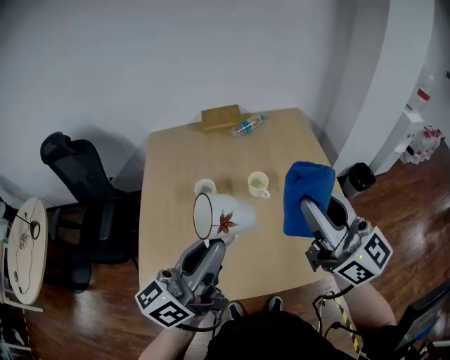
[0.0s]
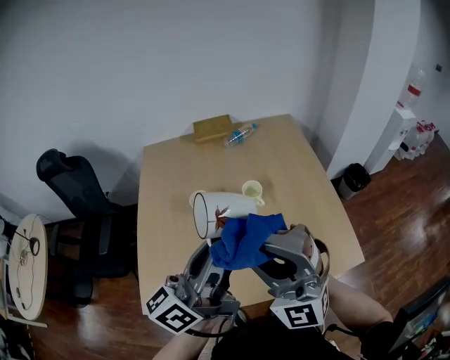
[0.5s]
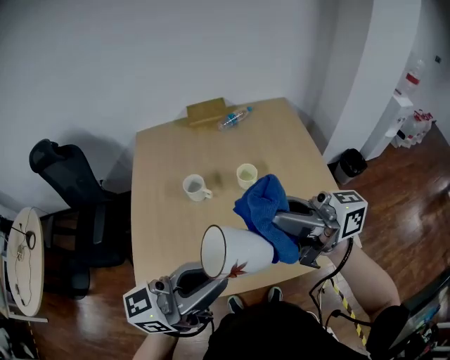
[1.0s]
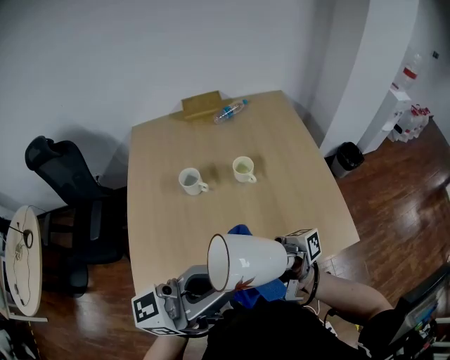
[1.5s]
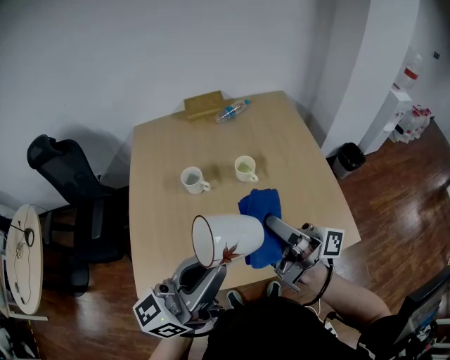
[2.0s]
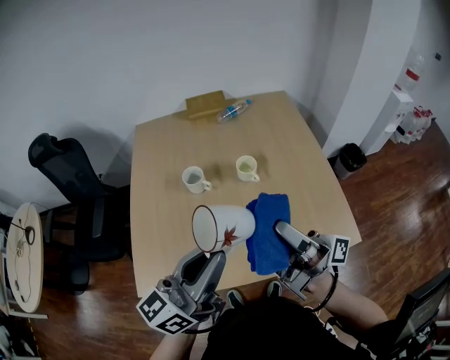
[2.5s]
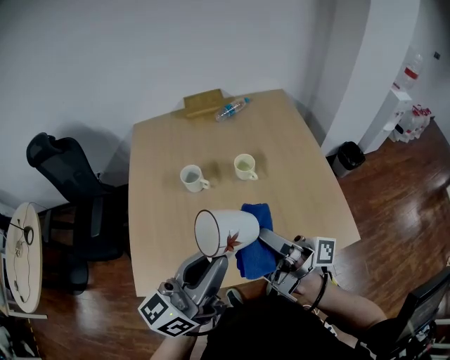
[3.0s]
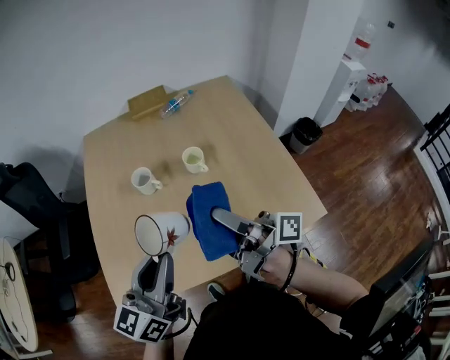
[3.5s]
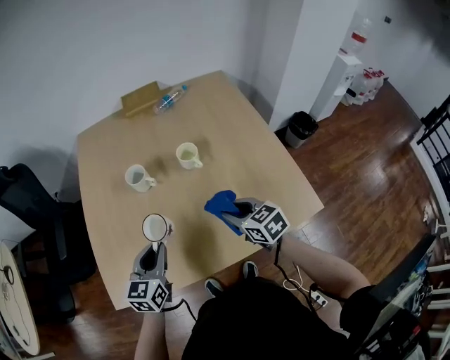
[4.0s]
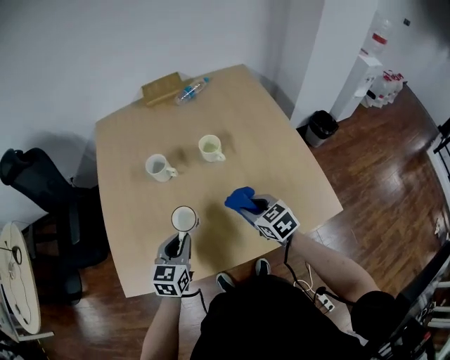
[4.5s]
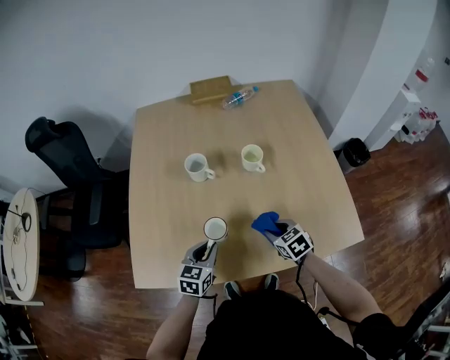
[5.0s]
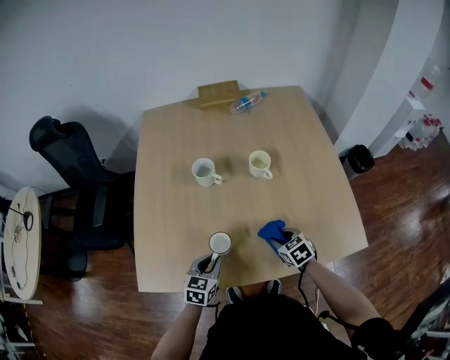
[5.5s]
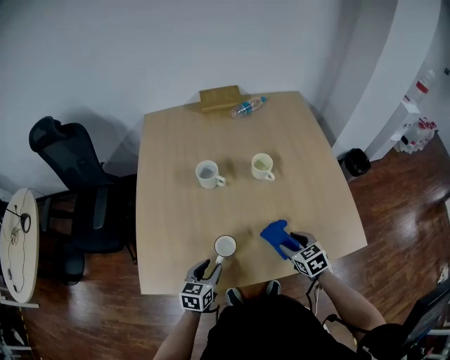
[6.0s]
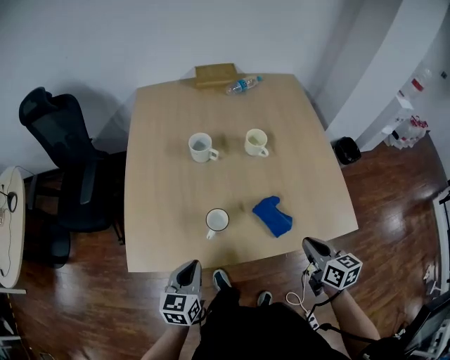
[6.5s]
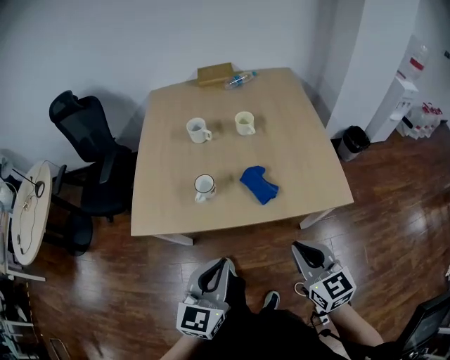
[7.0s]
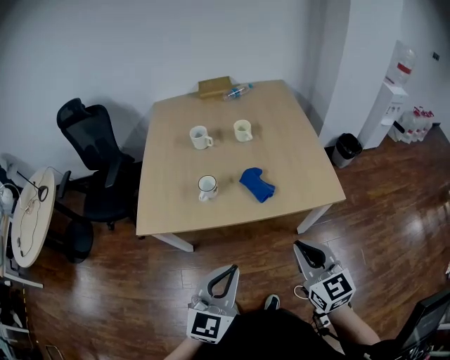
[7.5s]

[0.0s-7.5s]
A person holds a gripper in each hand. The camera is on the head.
0.0s to 2.0s: The right gripper shifts some 10 cm downward, and rolls clockwise, seen from behind, by approximately 70 degrees.
2.0s to 4.0s: Both grippers move downward, some 25 cm. The left gripper tips its fingers downward by about 40 degrees; the right gripper points its fingers roughly 70 degrees further downward.
4.0s to 5.5s: The grippers both shift downward by about 15 cm. The right gripper swivels about 20 degrees.
5.5s to 7.5s: Both grippers move backward and upward, some 40 cm. The left gripper rotates about 30 degrees, and opens and closes again; the right gripper points its fingers some 40 degrees further upward, and closes its fingers.

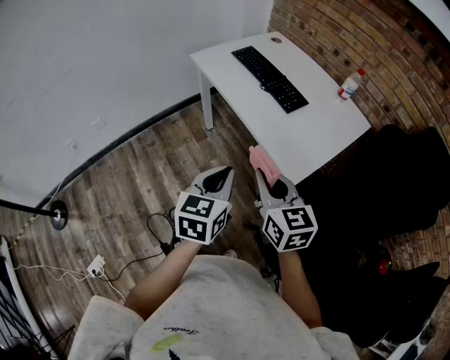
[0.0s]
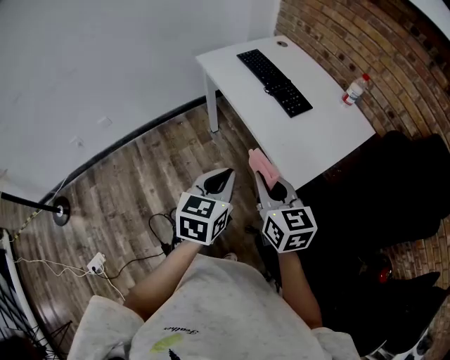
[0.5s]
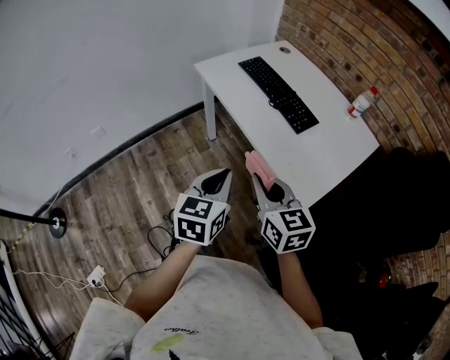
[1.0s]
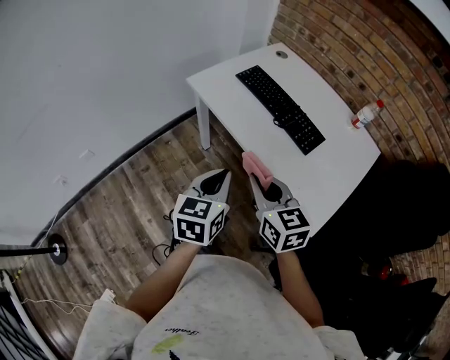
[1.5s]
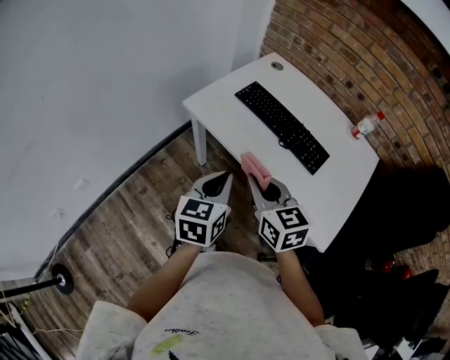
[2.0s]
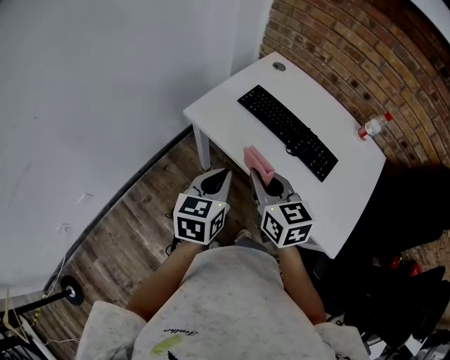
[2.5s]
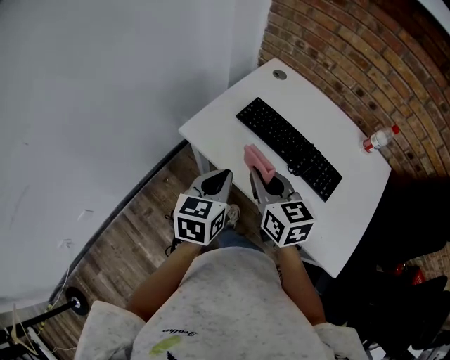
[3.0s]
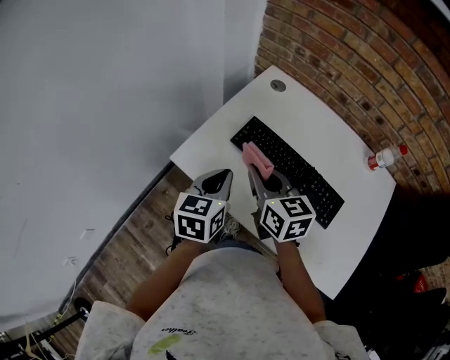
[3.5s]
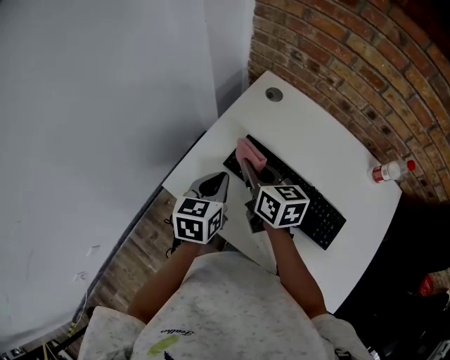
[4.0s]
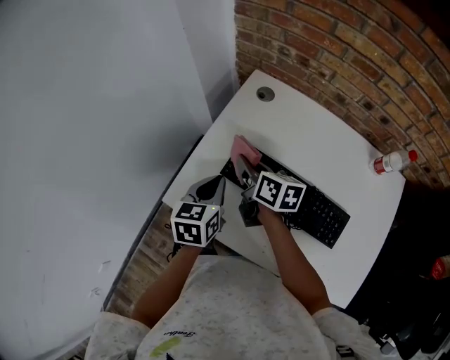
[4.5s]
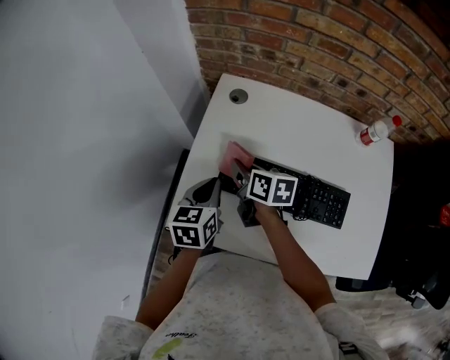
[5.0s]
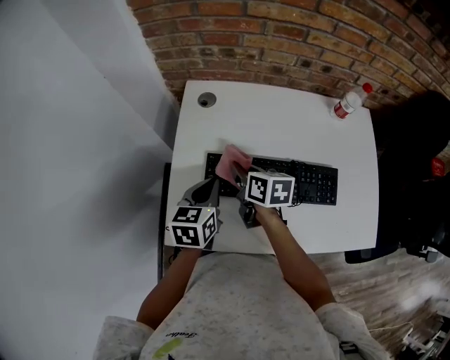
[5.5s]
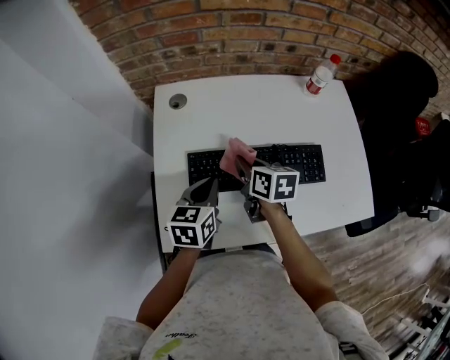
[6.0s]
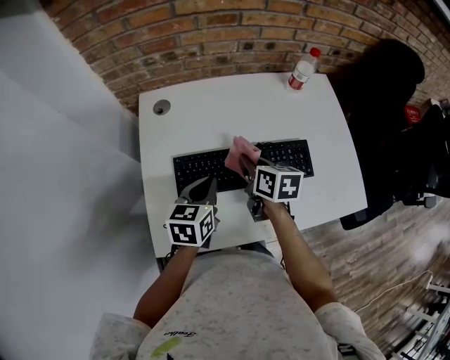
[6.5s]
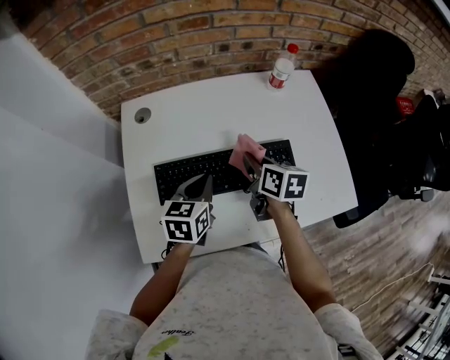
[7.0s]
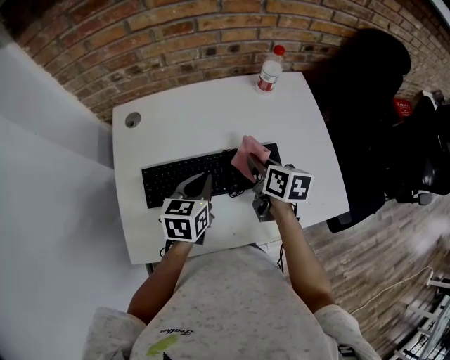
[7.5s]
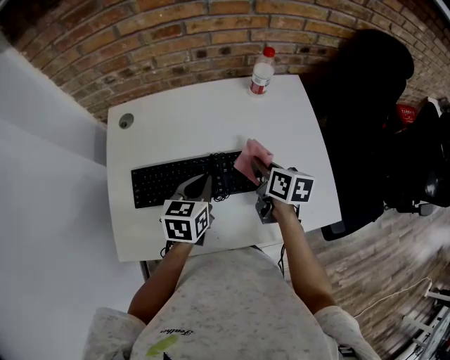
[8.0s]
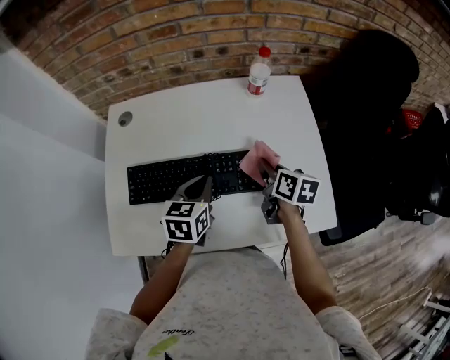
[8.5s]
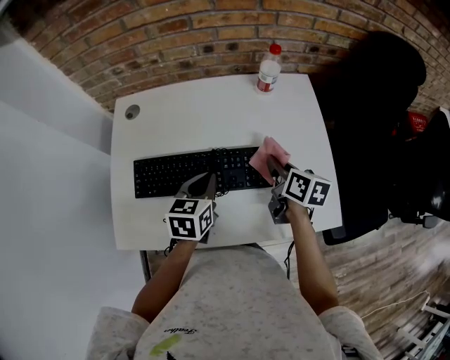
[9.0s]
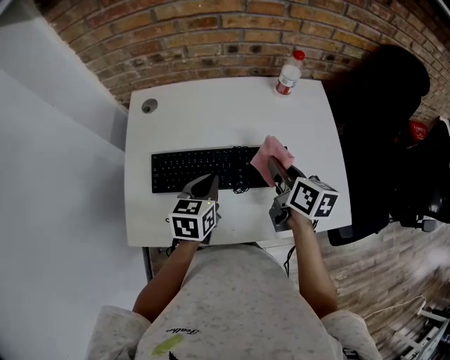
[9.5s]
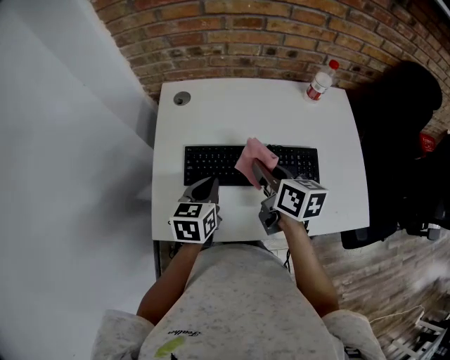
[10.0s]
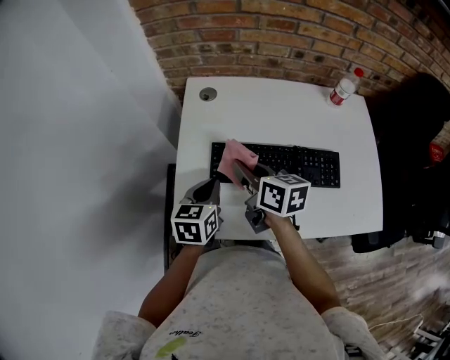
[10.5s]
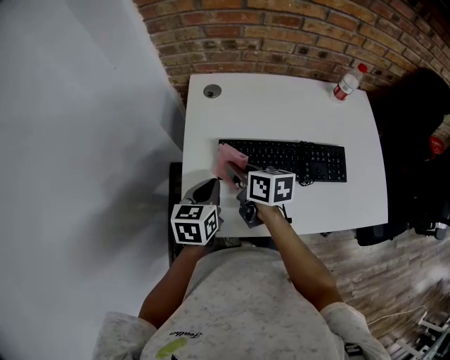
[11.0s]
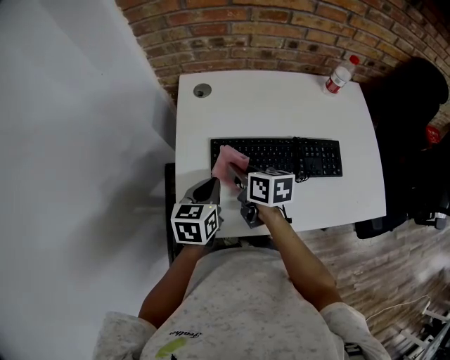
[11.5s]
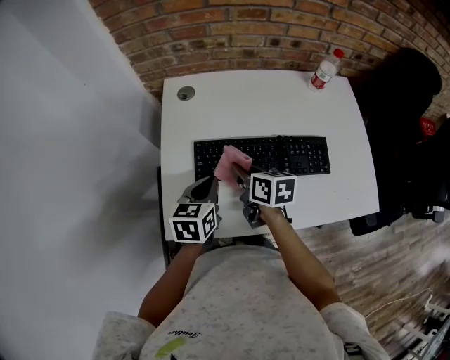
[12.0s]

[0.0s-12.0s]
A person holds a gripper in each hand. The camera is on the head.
0.0s to 2.0s: The grippers both shift forward and to the left by roughly 35 cm.
2.0s to 4.0s: Both grippers travel together forward, some 35 cm. The right gripper changes its angle by approximately 20 degrees.
4.0s to 6.0s: The right gripper moves about 10 cm, and changes its angle by approximately 40 degrees. The left gripper ends up approximately 10 cm from where it was, and swivels about 40 degrees.
6.0s to 8.0s: Both grippers move to the right, roughly 20 cm.
8.0s to 10.0s: The grippers both shift to the left by approximately 15 cm.
10.0s to 12.0s: The right gripper shifts approximately 10 cm to the left and downward.

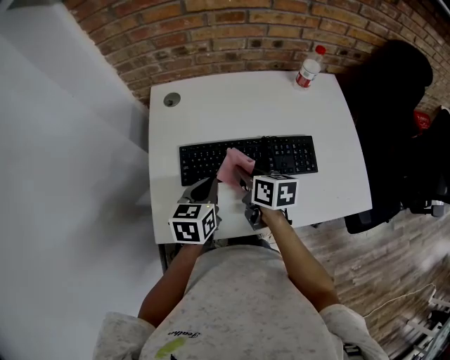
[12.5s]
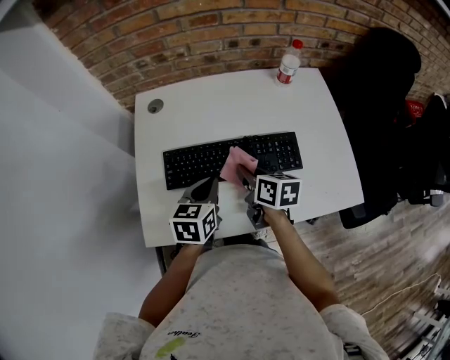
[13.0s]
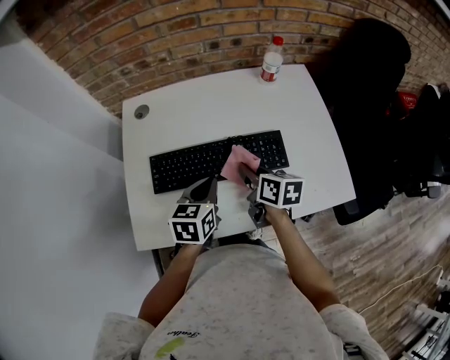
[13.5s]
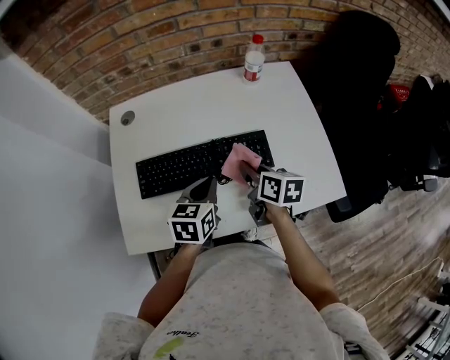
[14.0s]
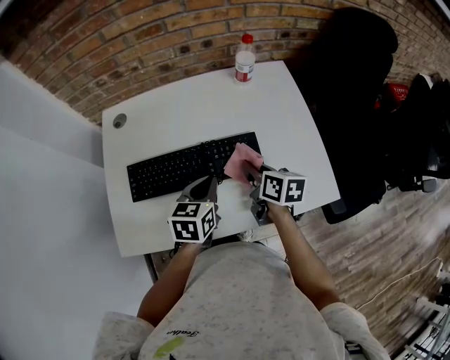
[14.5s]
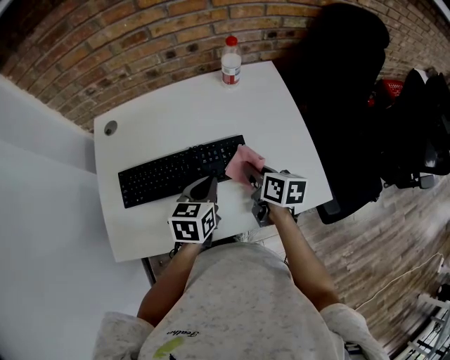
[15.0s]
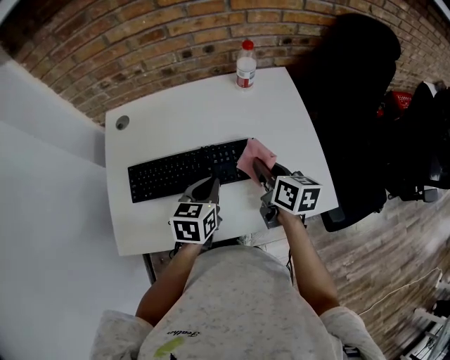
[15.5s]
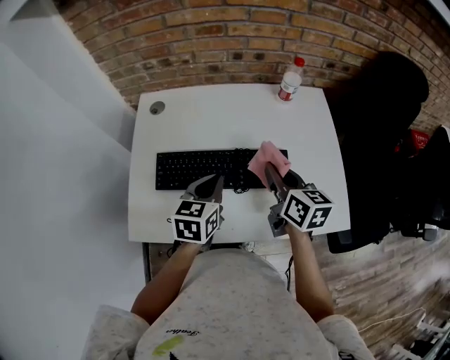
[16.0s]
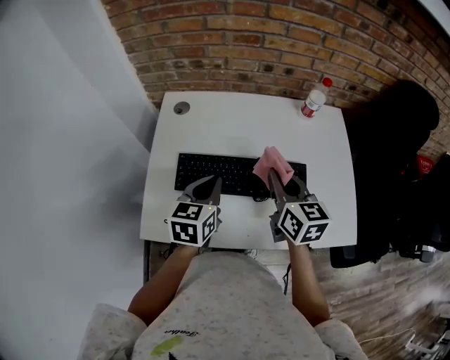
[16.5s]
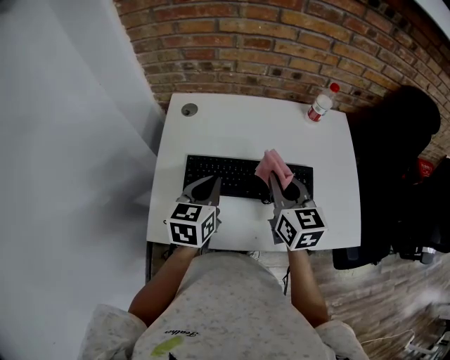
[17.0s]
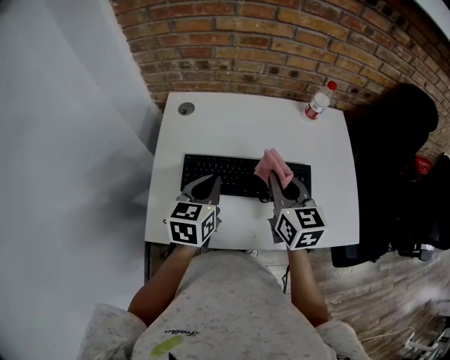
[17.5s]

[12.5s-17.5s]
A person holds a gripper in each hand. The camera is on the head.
12.5s to 15.0s: Both grippers move to the right, some 25 cm.
15.0s to 17.5s: The right gripper heads to the left and upward, covering some 20 cm, and changes its angle by some 40 degrees, while the left gripper heads to the left, covering approximately 20 cm.

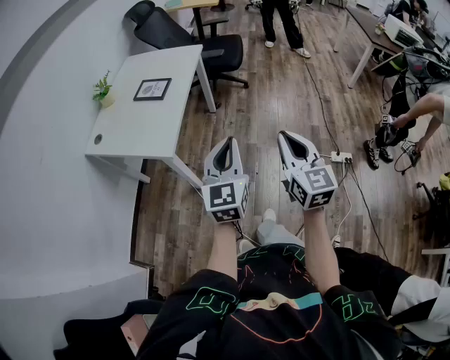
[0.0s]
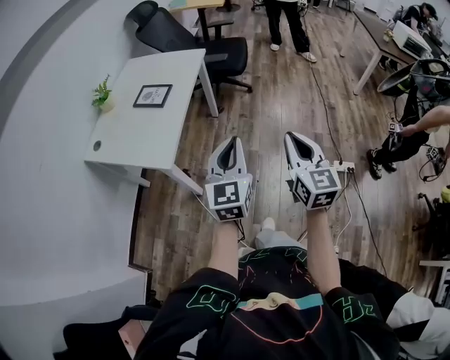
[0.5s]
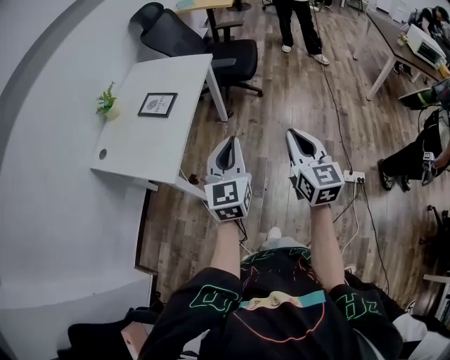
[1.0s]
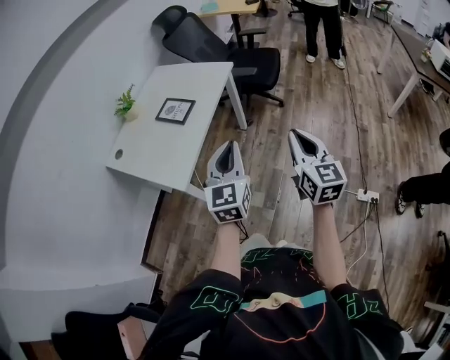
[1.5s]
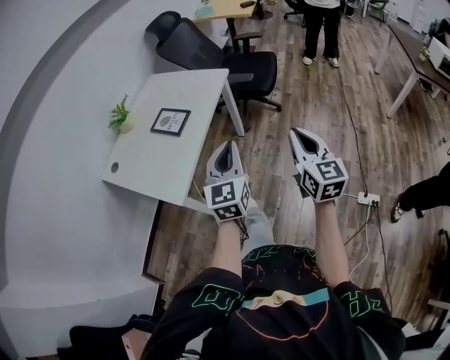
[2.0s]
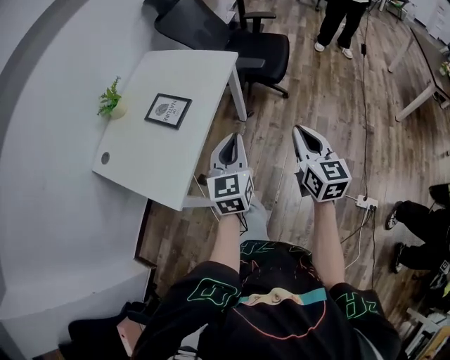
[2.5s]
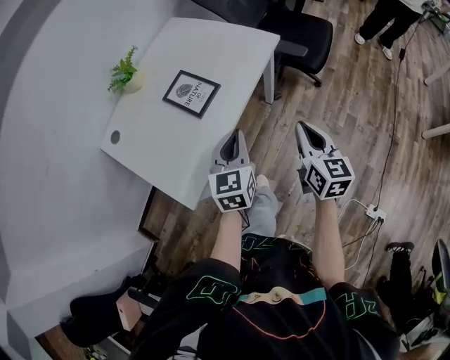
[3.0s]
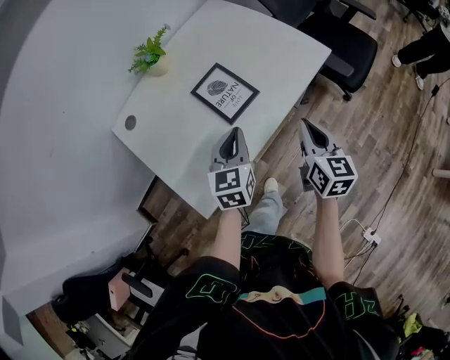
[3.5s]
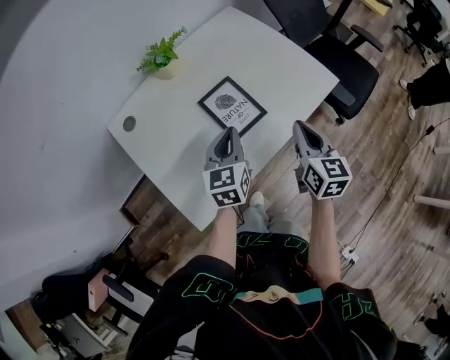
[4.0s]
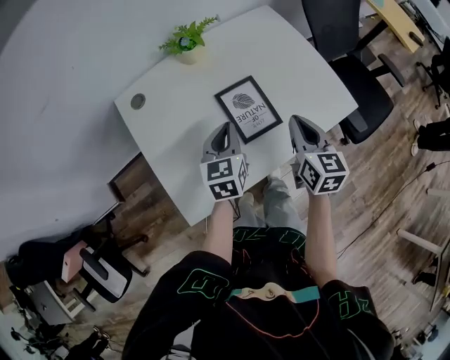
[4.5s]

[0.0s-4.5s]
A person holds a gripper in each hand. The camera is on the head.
0.0s to 2.0s: The two grippers go some 25 cm forward.
2.0s to 4.5s: The pair of grippers is taken some 50 cm. The left gripper rotates roughly 50 degrees; the right gripper changes its angle by approximately 40 degrees.
